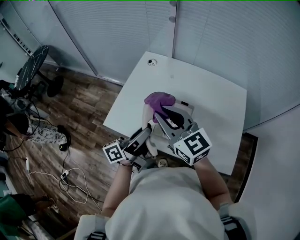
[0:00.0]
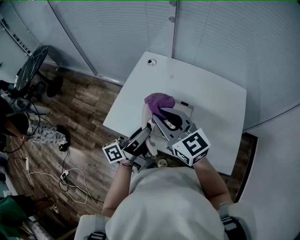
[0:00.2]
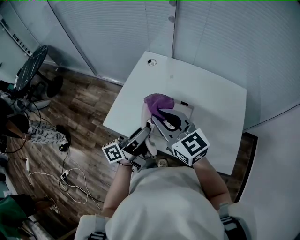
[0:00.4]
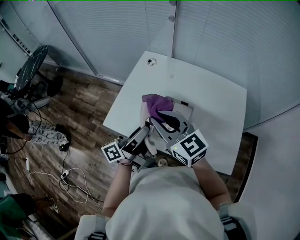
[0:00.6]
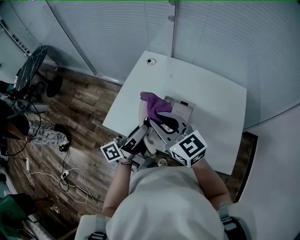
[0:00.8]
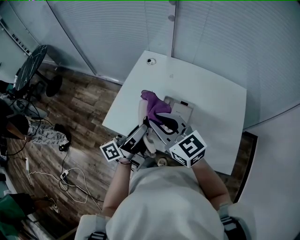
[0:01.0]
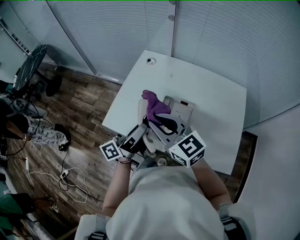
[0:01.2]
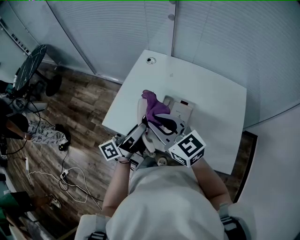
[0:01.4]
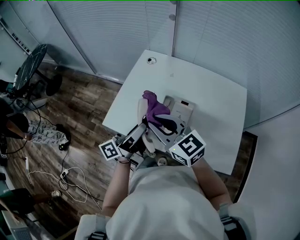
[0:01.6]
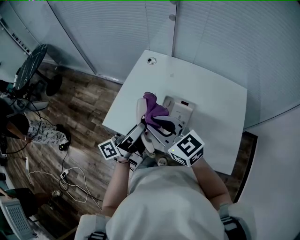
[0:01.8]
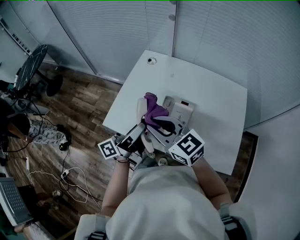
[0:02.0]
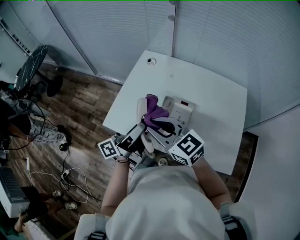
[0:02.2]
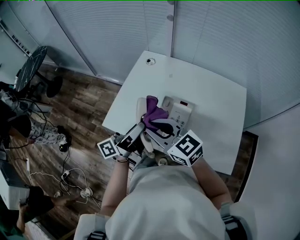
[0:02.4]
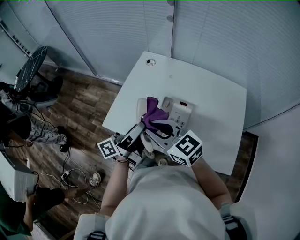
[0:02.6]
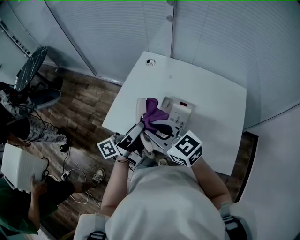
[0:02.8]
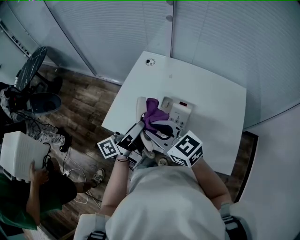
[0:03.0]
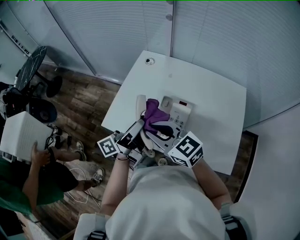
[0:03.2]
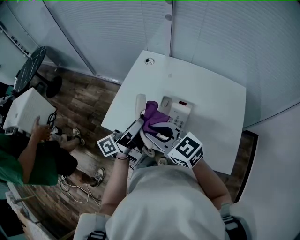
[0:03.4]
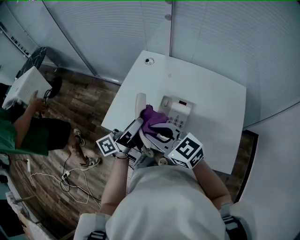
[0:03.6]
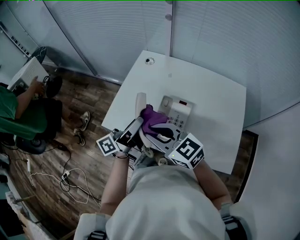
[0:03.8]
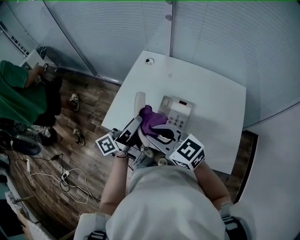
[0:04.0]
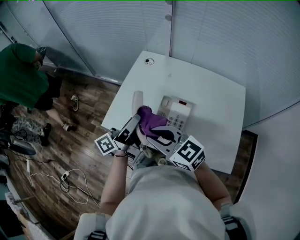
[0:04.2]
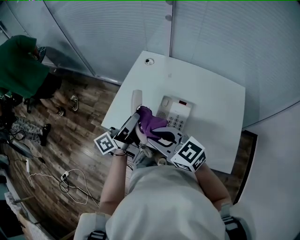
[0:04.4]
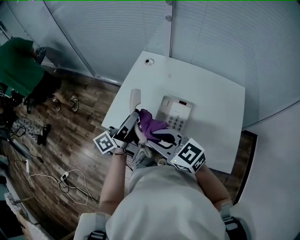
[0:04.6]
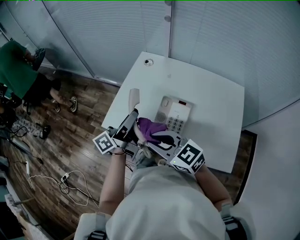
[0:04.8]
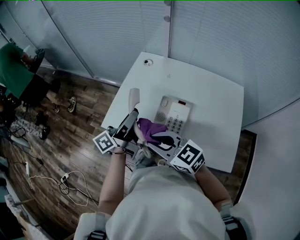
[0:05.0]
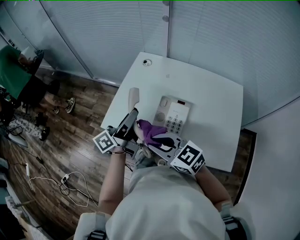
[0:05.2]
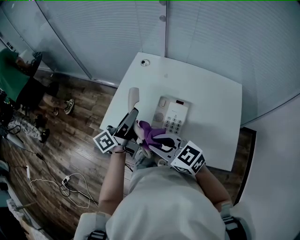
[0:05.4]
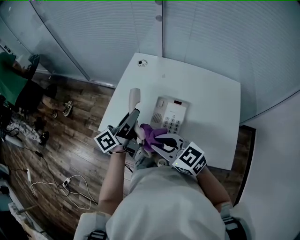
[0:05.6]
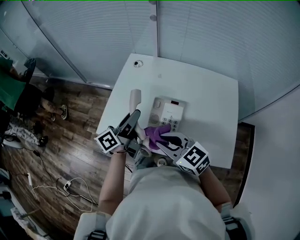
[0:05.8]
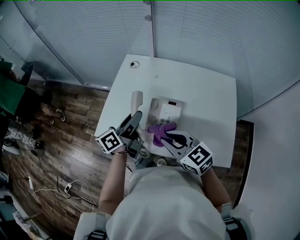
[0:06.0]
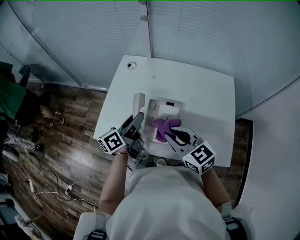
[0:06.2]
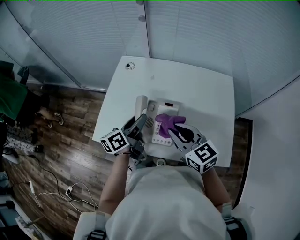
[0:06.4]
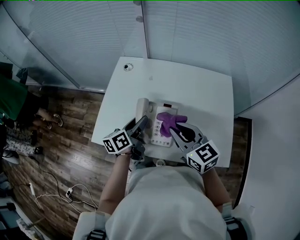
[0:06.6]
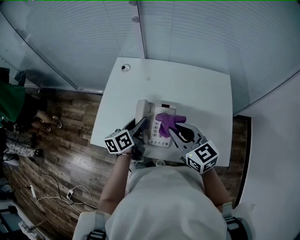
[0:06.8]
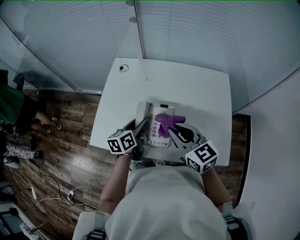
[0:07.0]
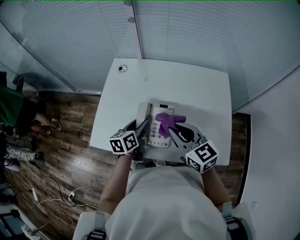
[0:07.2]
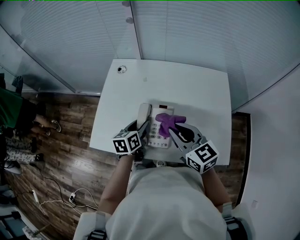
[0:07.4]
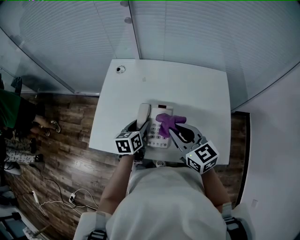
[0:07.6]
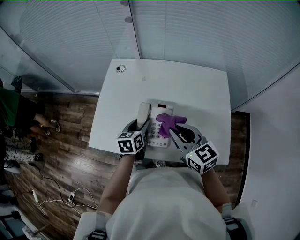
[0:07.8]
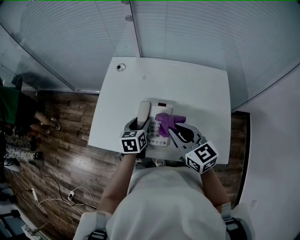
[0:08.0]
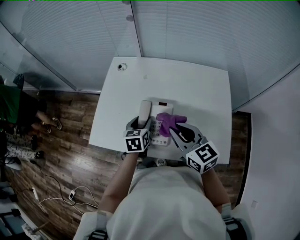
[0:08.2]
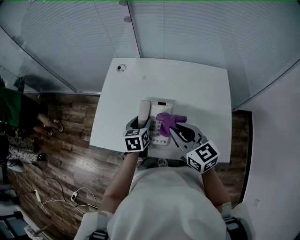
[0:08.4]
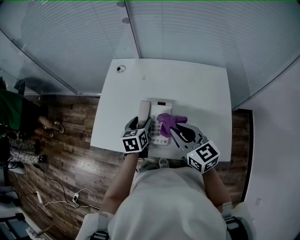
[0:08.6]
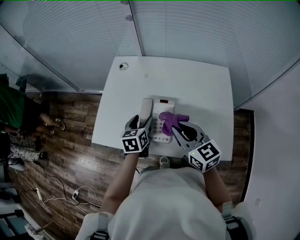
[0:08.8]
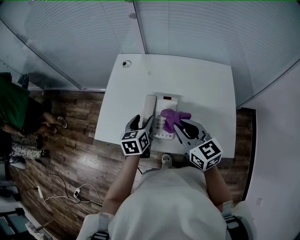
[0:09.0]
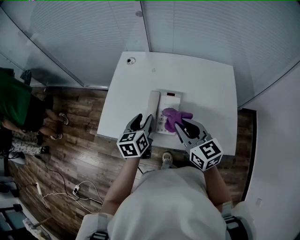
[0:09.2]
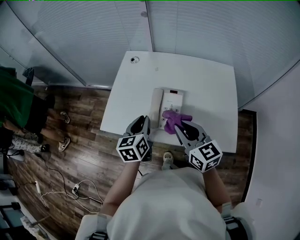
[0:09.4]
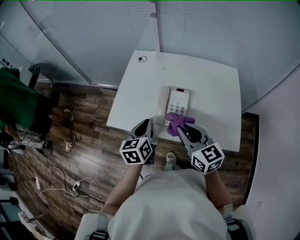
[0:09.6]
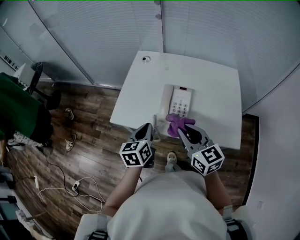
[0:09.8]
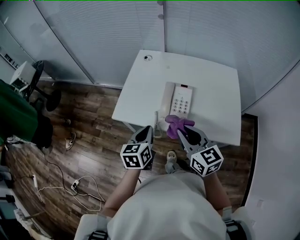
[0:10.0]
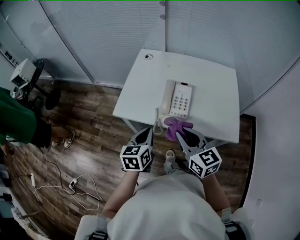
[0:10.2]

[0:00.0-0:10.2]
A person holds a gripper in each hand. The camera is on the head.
0:00.0 to 0:01.4: The grippers stay close to where they were, moving slightly.
0:01.4 to 0:03.0: The grippers make only small movements.
0:03.0 to 0:04.4: The grippers stay close to where they were, moving slightly.
0:04.4 to 0:05.8: The left gripper changes place by approximately 5 cm. The right gripper ends up about 5 cm from where it was.
0:05.8 to 0:07.2: The right gripper moves to the right and forward, about 10 cm, and swivels approximately 30 degrees; the left gripper travels downward and to the right by roughly 10 cm, and tilts its fingers approximately 30 degrees downward.
0:08.8 to 0:10.2: Both grippers travel together backward and to the left, roughly 20 cm. The left gripper closes.

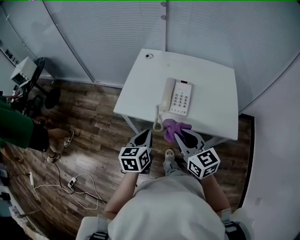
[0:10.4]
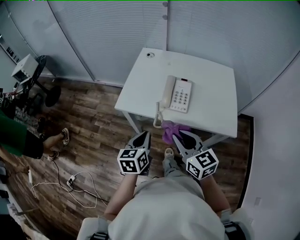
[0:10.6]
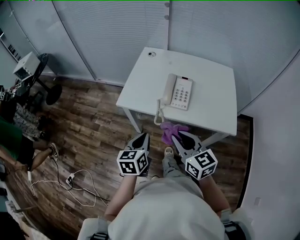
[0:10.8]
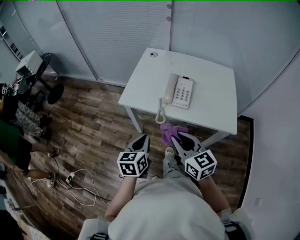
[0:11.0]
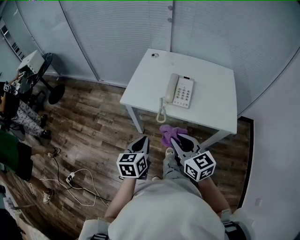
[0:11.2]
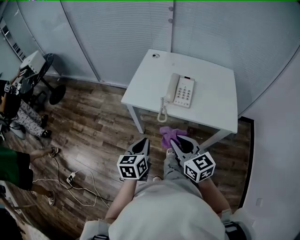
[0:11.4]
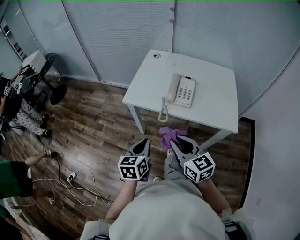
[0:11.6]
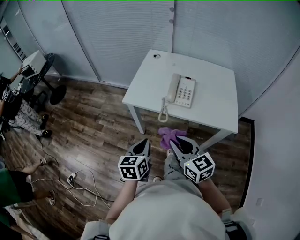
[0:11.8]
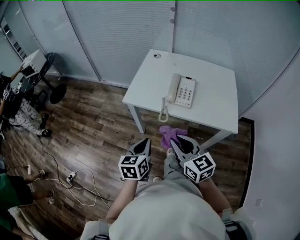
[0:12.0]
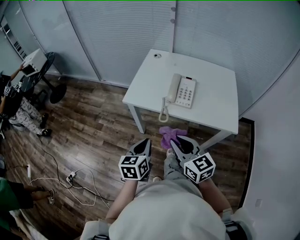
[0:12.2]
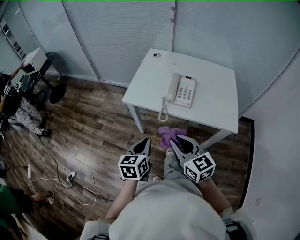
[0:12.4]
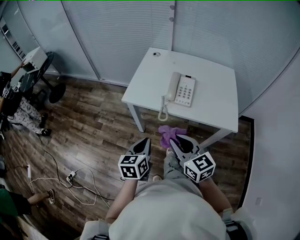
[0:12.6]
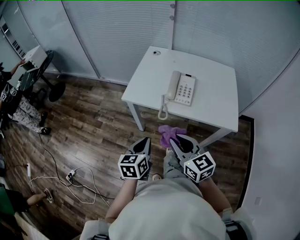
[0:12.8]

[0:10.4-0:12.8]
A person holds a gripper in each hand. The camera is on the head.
0:10.4 to 0:11.6: Both grippers move backward and to the left, approximately 10 cm.
0:11.6 to 0:12.8: Both grippers stay about where they are.

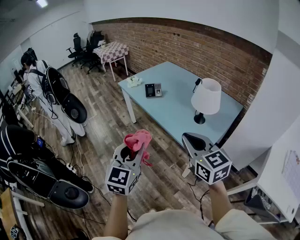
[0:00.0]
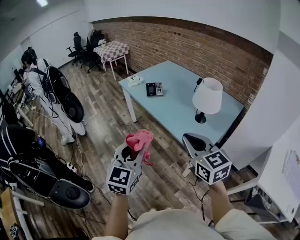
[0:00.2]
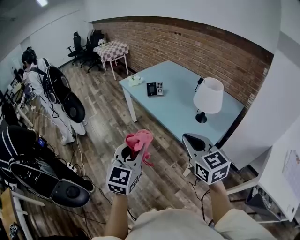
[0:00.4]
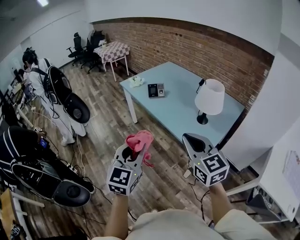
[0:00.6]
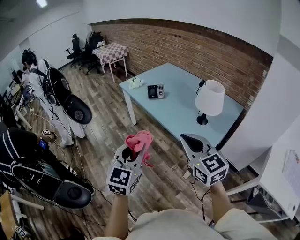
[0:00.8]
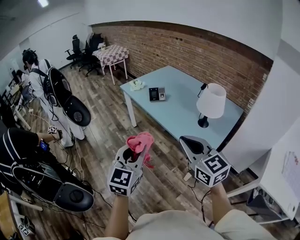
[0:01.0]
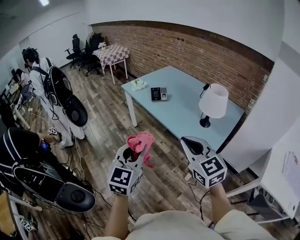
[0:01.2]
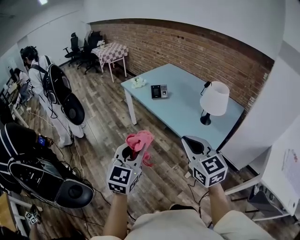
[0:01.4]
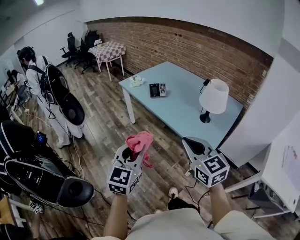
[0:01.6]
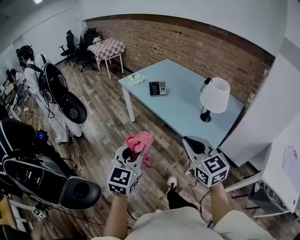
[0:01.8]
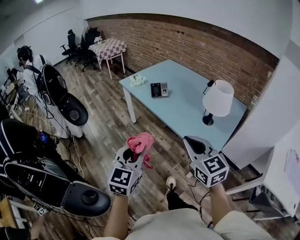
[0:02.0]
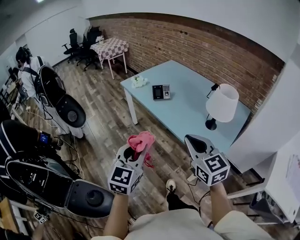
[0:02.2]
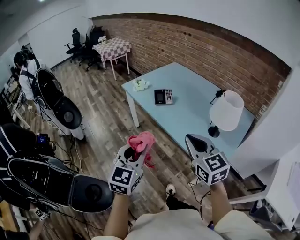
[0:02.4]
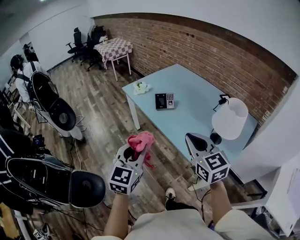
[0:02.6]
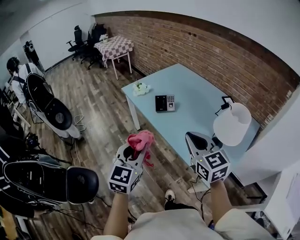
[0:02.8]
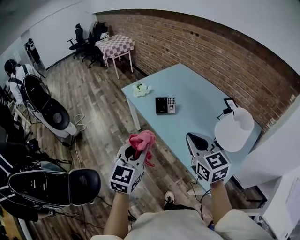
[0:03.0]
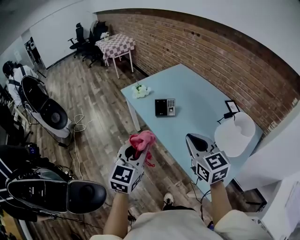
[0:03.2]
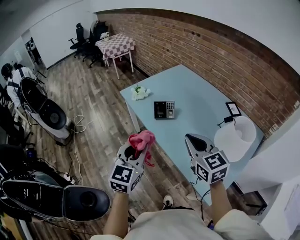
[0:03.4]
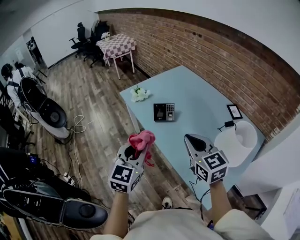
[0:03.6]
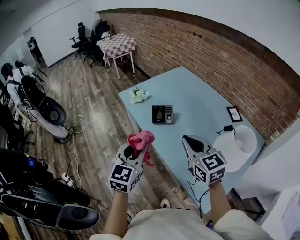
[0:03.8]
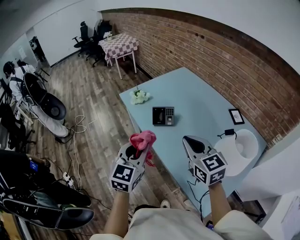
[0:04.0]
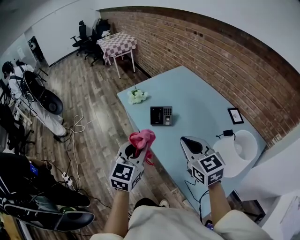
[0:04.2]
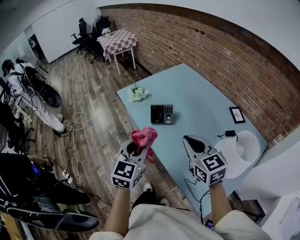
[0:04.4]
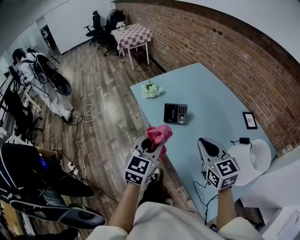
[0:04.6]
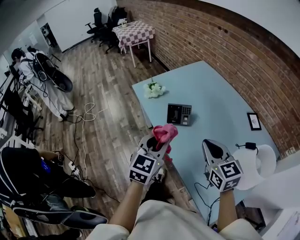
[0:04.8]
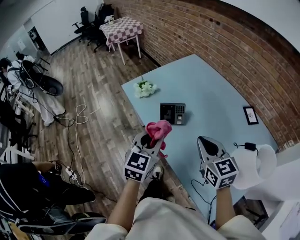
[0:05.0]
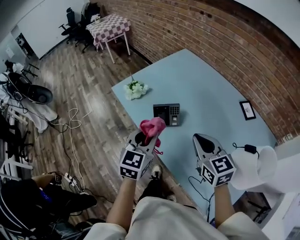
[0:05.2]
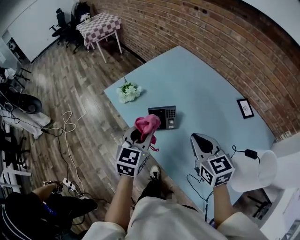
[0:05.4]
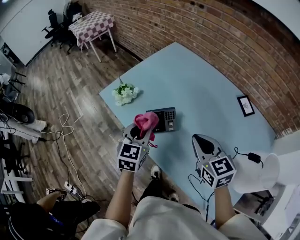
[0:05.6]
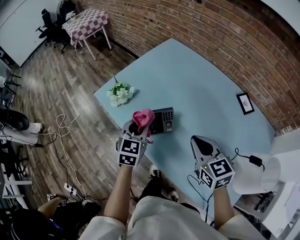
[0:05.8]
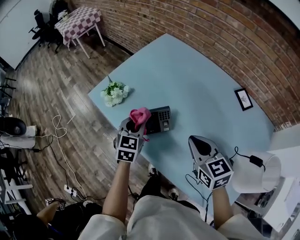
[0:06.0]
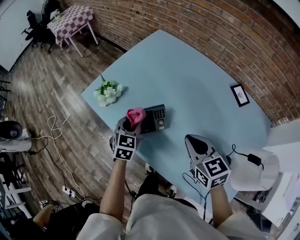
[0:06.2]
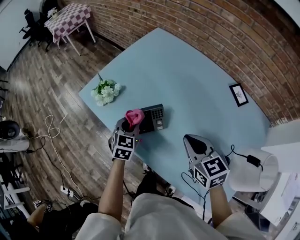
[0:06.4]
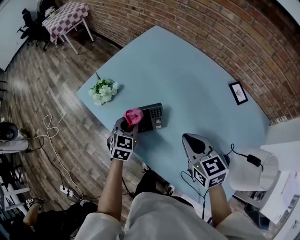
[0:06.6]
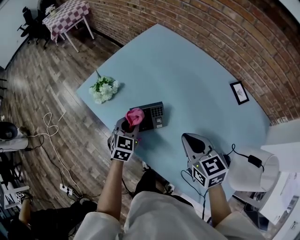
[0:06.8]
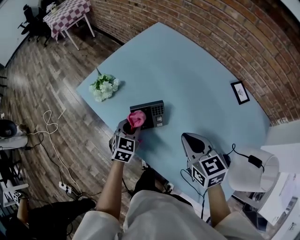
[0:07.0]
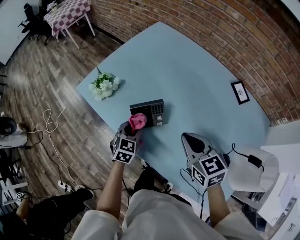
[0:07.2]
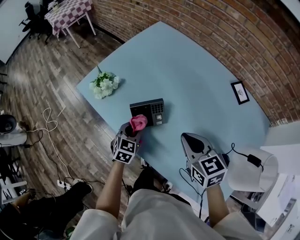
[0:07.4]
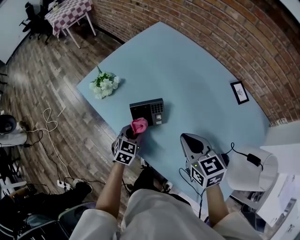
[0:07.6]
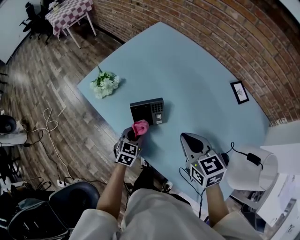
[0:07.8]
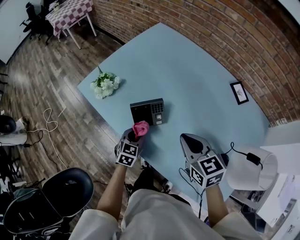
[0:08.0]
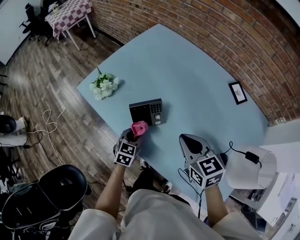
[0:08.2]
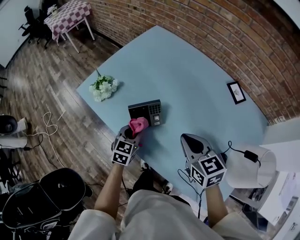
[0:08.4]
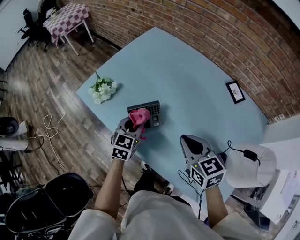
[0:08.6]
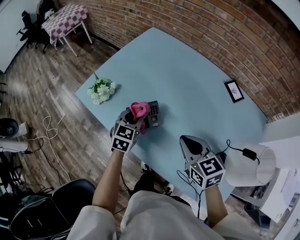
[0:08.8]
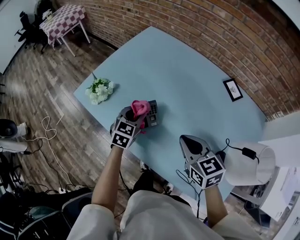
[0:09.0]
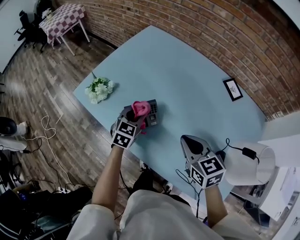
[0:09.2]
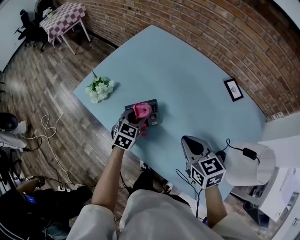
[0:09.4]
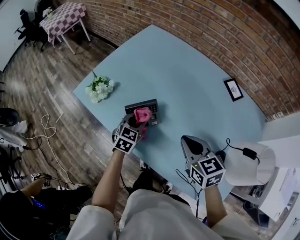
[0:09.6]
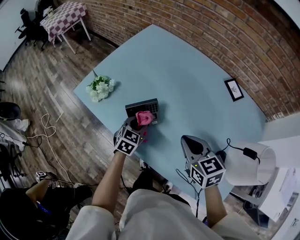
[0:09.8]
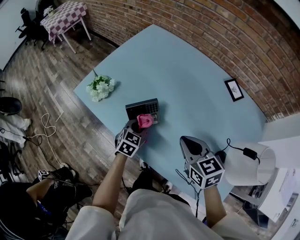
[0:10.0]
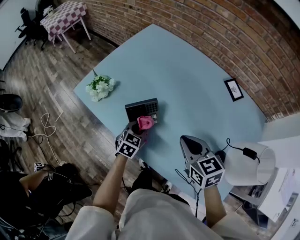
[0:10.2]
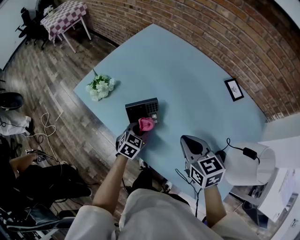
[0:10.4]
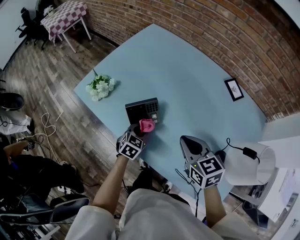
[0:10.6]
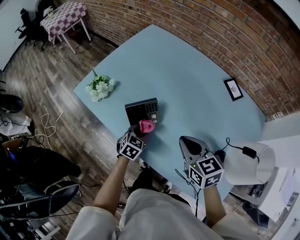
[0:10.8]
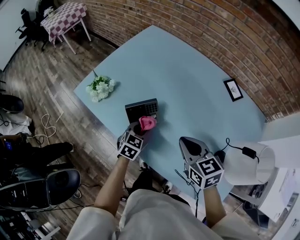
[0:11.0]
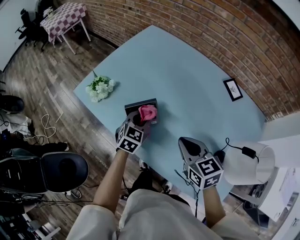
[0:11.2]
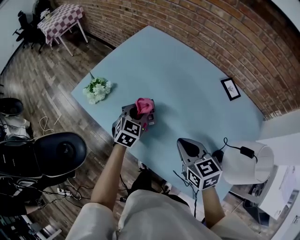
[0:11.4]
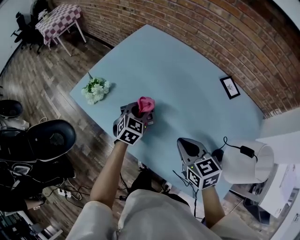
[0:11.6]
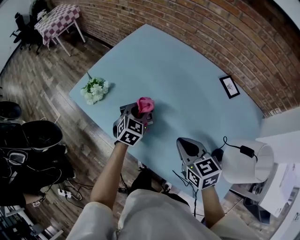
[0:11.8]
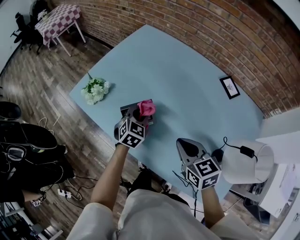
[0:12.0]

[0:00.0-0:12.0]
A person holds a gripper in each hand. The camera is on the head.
0:00.0 to 0:01.6: The two grippers go roughly 10 cm to the left.
0:01.6 to 0:03.0: Both grippers travel together forward, some 30 cm.
0:03.0 to 0:04.4: The right gripper shifts approximately 10 cm forward, while the left gripper travels forward and to the right by roughly 15 cm.
0:04.4 to 0:06.0: The left gripper moves forward and downward, approximately 35 cm; the right gripper shifts about 20 cm forward and downward, and changes its angle by roughly 20 degrees.
0:06.0 to 0:07.6: The left gripper is displaced downward and backward by about 15 cm.
0:07.6 to 0:09.0: The left gripper travels upward and forward by about 10 cm.
0:09.0 to 0:10.4: The left gripper goes approximately 10 cm downward and backward.
0:10.4 to 0:12.0: The left gripper is displaced forward and upward by about 10 cm.
